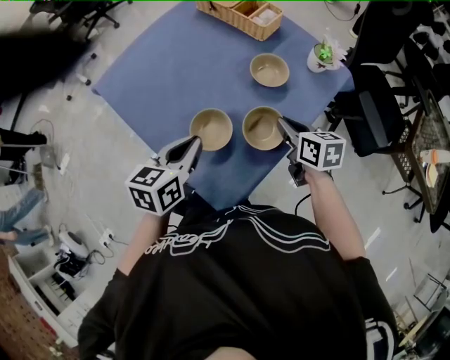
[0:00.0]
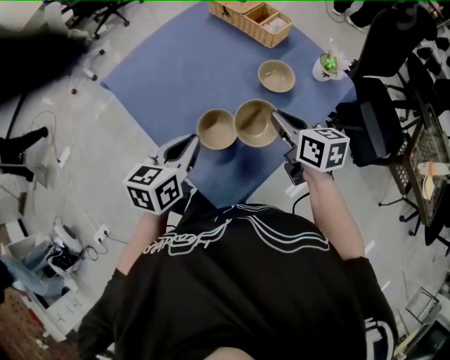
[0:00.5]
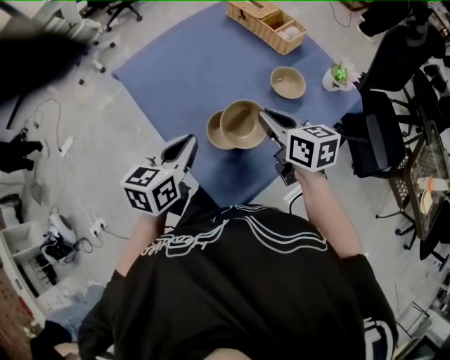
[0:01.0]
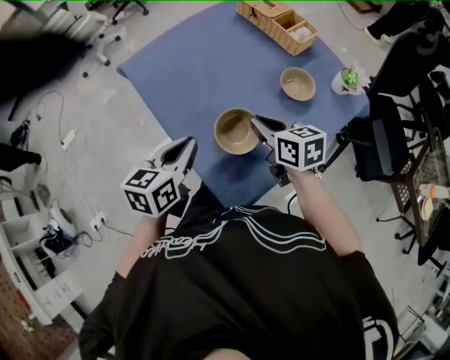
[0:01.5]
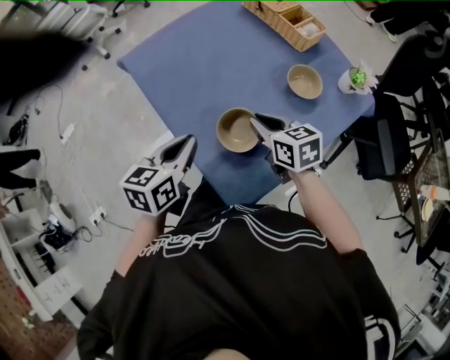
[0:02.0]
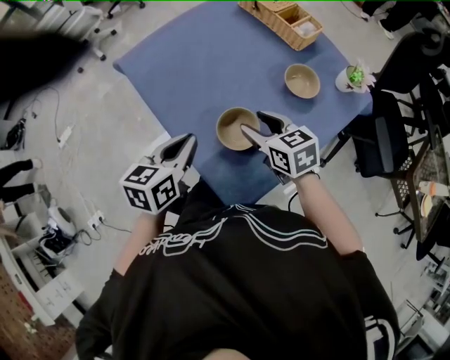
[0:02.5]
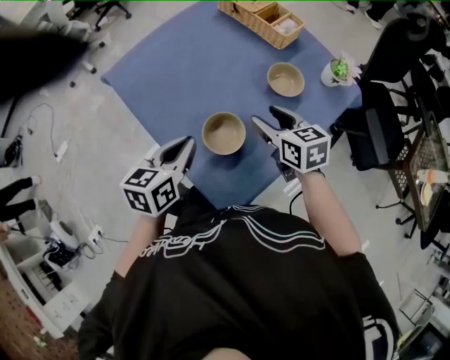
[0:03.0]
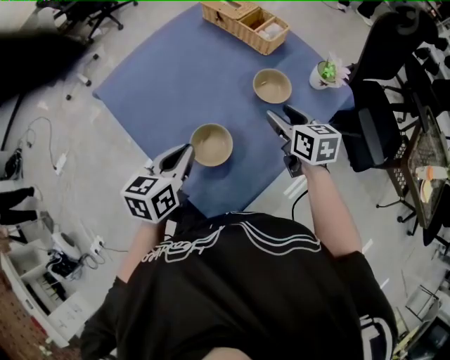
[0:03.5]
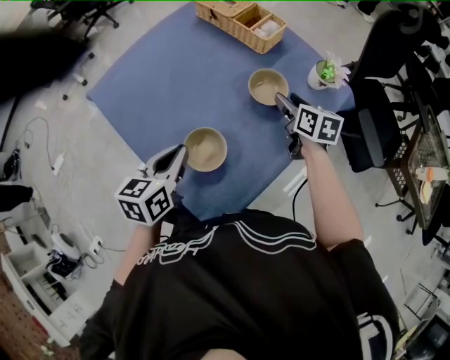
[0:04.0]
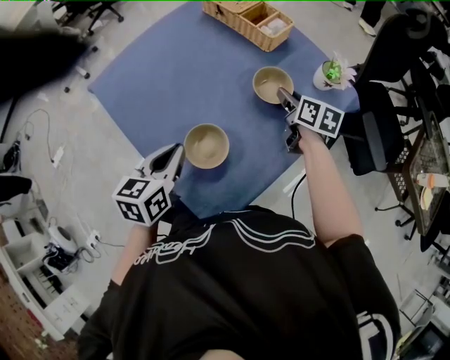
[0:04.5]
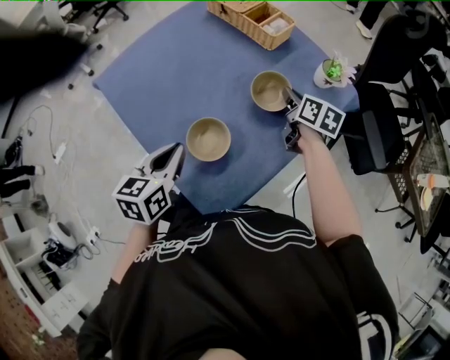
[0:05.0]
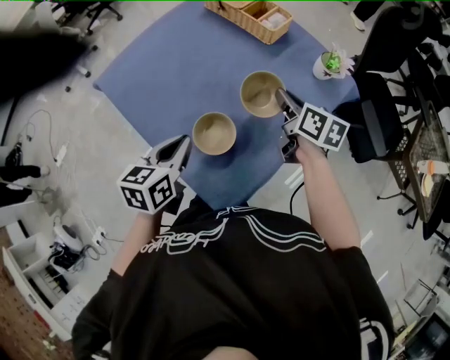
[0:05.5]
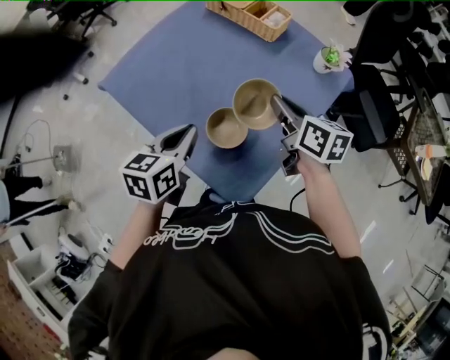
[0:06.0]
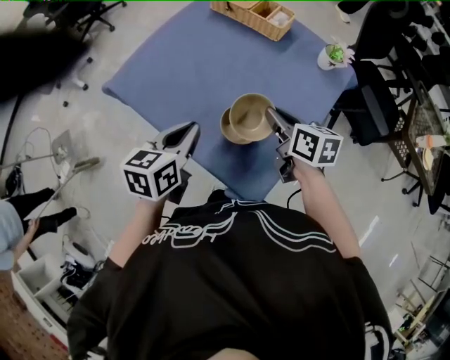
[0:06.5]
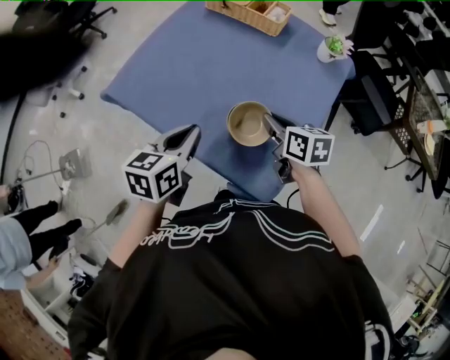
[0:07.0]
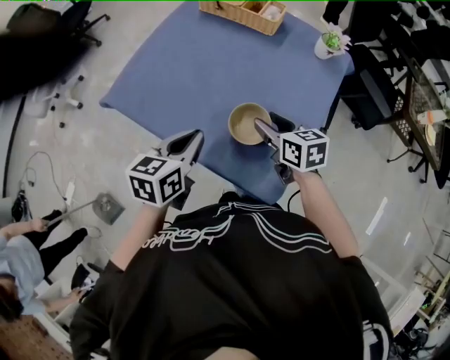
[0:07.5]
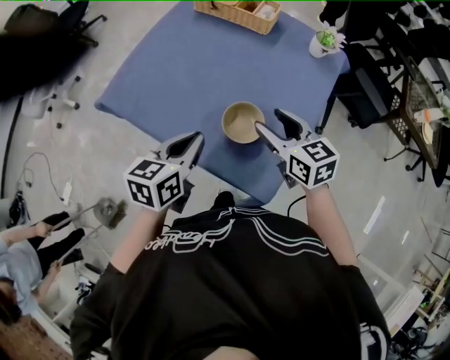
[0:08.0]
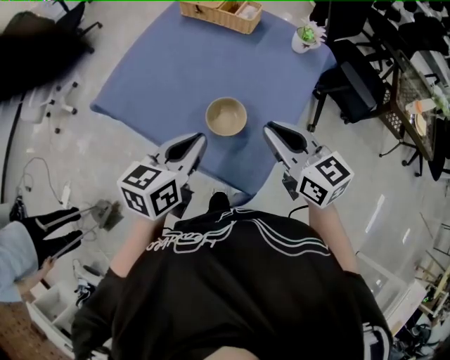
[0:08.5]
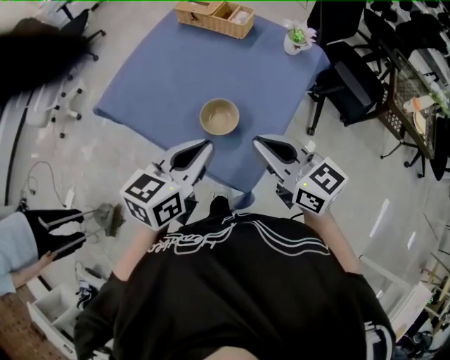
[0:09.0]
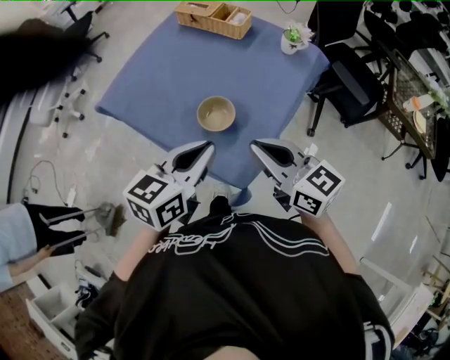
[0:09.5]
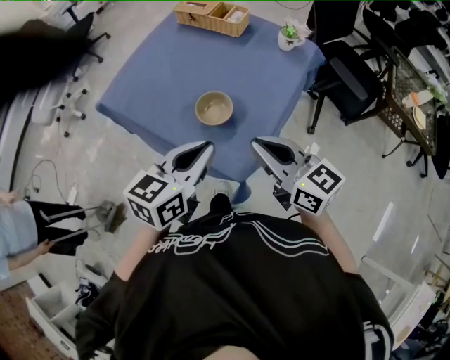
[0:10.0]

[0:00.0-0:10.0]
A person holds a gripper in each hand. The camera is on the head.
0:00.0 to 0:02.0: The left gripper goes about 10 cm to the left; the right gripper goes approximately 15 cm to the left, and changes its angle by approximately 20 degrees.
0:02.0 to 0:04.0: The left gripper travels to the right by approximately 10 cm. The right gripper shifts about 25 cm to the right and forward, turns by approximately 30 degrees, and opens its fingers.
0:04.0 to 0:06.0: The right gripper is displaced backward, to the left and upward by approximately 20 cm, and closes up; the left gripper moves about 5 cm.
0:06.0 to 0:08.0: The right gripper shifts roughly 10 cm backward and to the left, travels downward and back again, roughly 10 cm each way, turns by some 20 degrees, and opens up.
0:08.0 to 0:10.0: The left gripper travels backward, to the right and upward by approximately 20 cm. The right gripper travels backward and upward by about 20 cm, changes its angle by some 20 degrees, and closes.

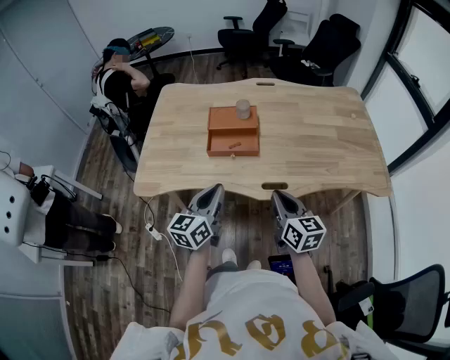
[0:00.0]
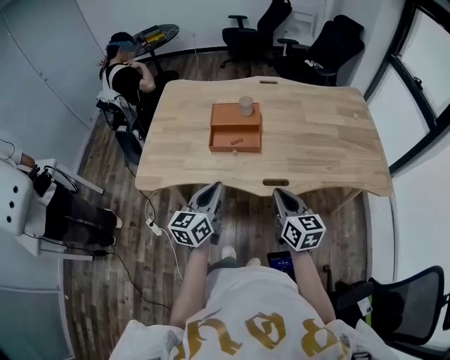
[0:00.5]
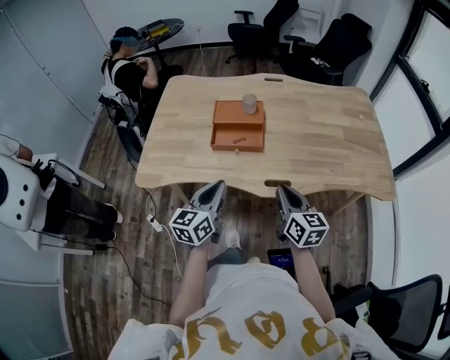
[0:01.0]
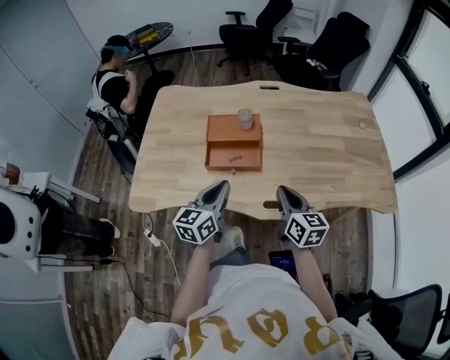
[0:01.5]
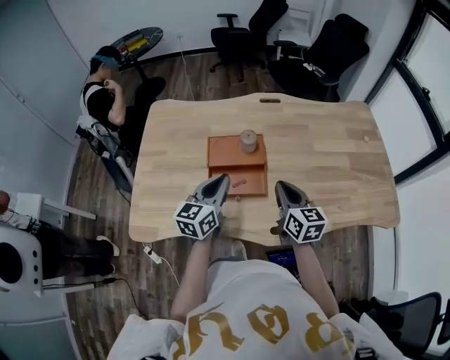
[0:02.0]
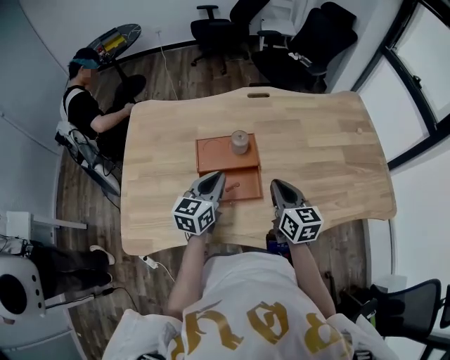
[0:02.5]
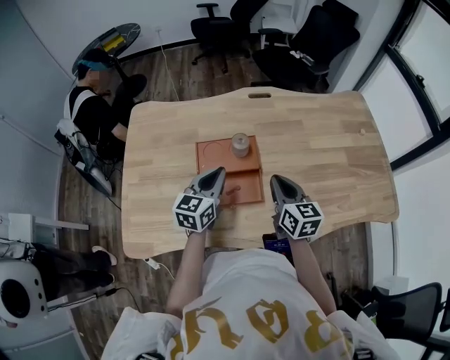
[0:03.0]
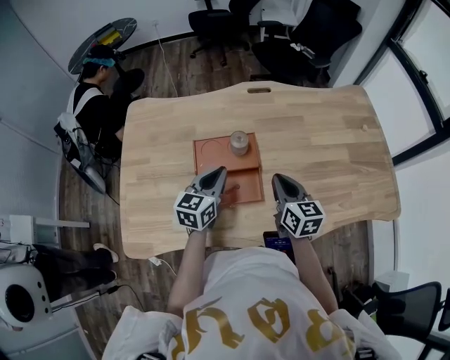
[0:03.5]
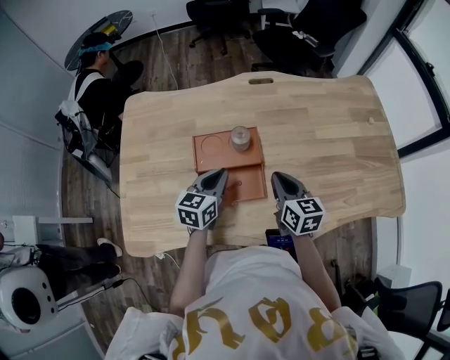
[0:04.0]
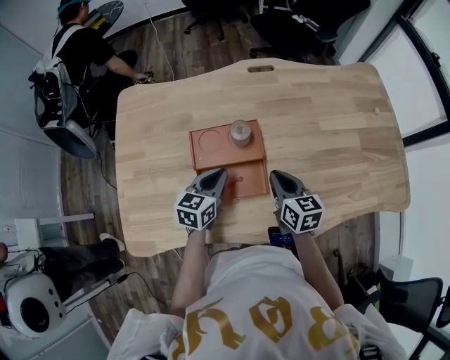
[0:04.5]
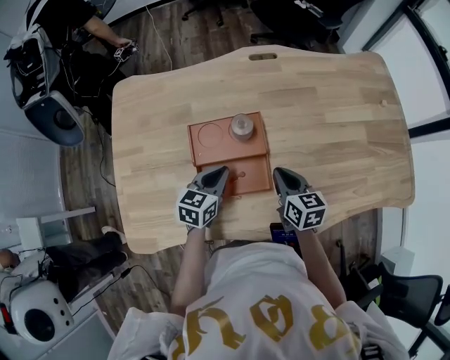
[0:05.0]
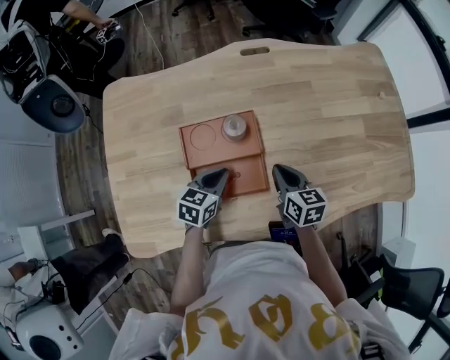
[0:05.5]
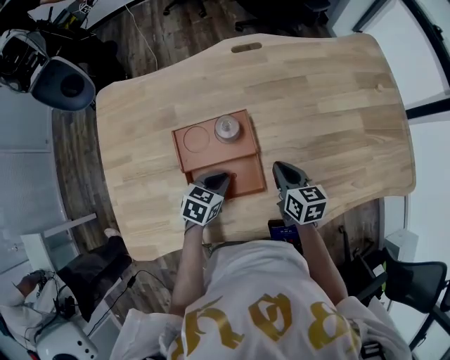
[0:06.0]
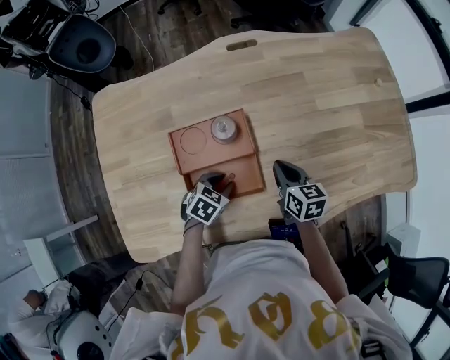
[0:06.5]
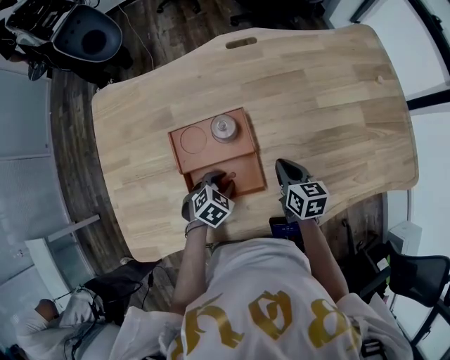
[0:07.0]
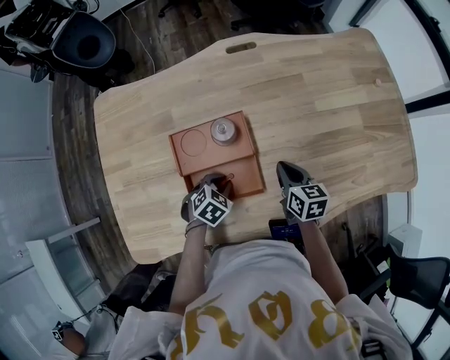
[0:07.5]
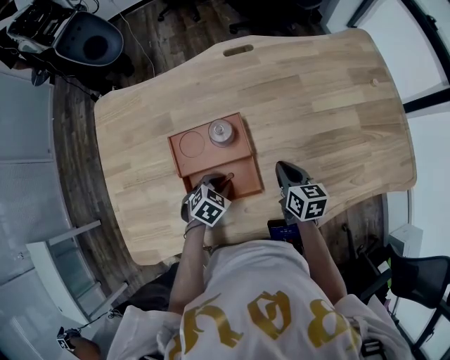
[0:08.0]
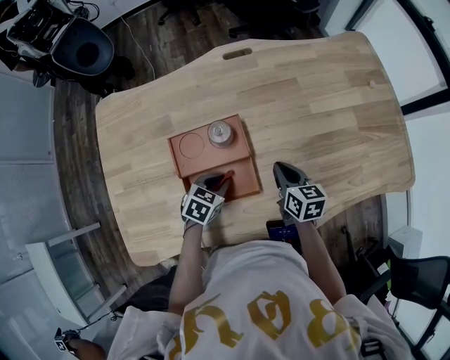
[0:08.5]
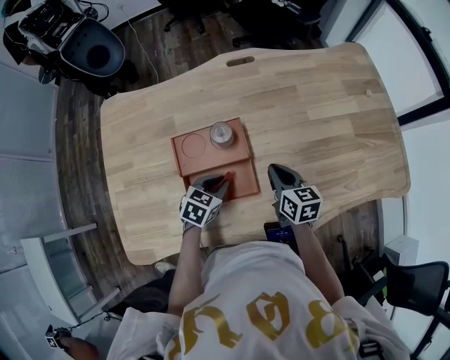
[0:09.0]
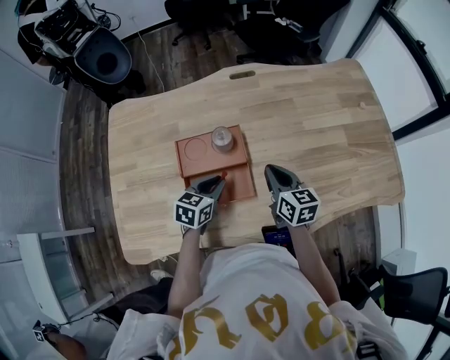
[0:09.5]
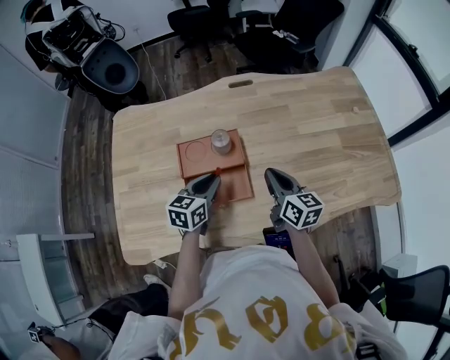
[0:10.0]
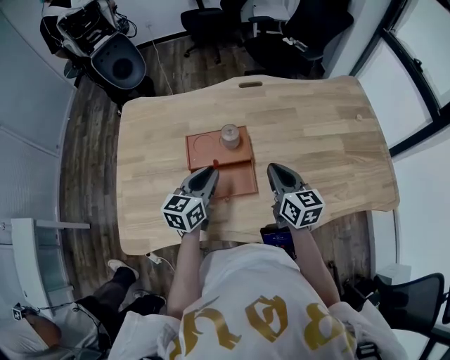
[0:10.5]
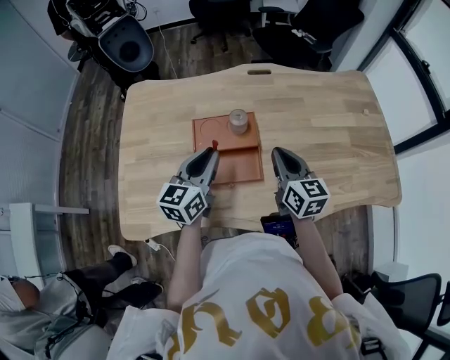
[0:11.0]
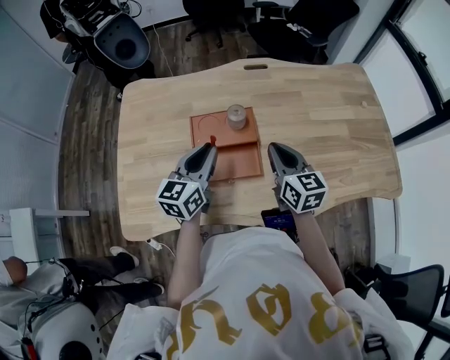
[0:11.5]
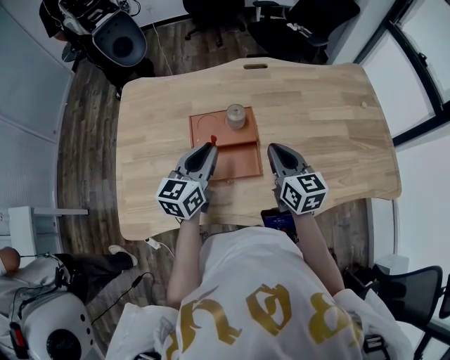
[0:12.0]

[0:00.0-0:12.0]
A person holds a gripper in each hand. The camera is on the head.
0:00.0 to 0:02.0: Both grippers move forward, roughly 25 cm.
0:02.0 to 0:04.0: The left gripper shifts approximately 15 cm downward and forward; the right gripper shifts some 10 cm forward and downward.
0:04.0 to 0:06.0: Both grippers move downward, roughly 10 cm. The left gripper turns by about 30 degrees.
0:06.0 to 0:08.0: The left gripper turns by approximately 20 degrees.
0:08.0 to 0:10.0: Both grippers move upward, some 15 cm. The left gripper tilts its fingers approximately 40 degrees upward; the right gripper swivels approximately 20 degrees.
0:10.0 to 0:12.0: The right gripper ends up roughly 5 cm from where it was; the left gripper shifts roughly 10 cm upward and to the left.

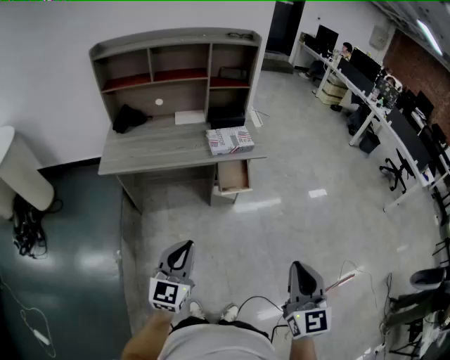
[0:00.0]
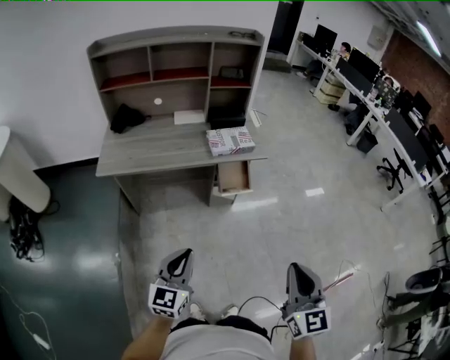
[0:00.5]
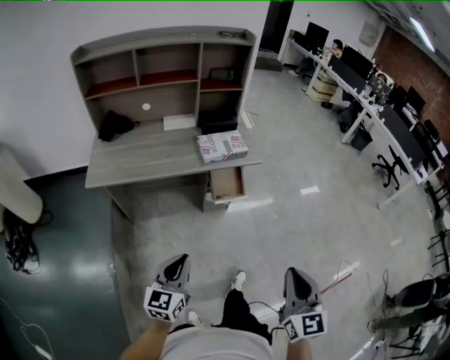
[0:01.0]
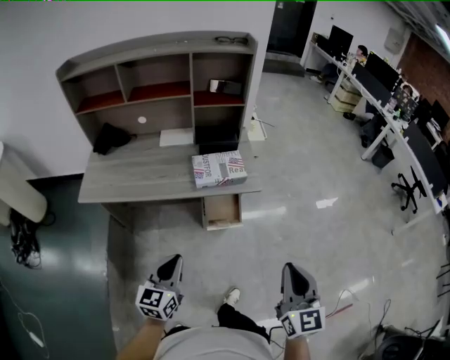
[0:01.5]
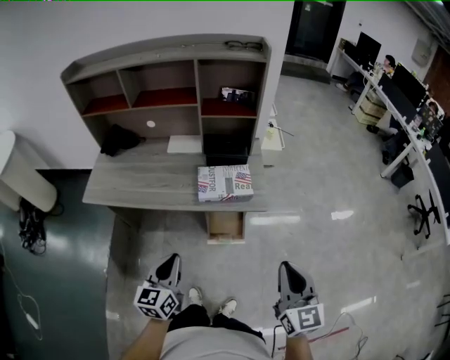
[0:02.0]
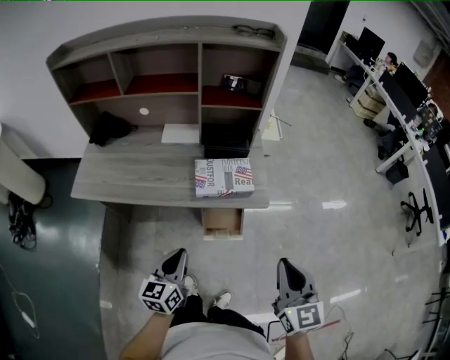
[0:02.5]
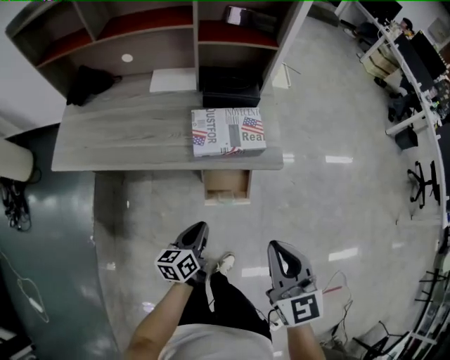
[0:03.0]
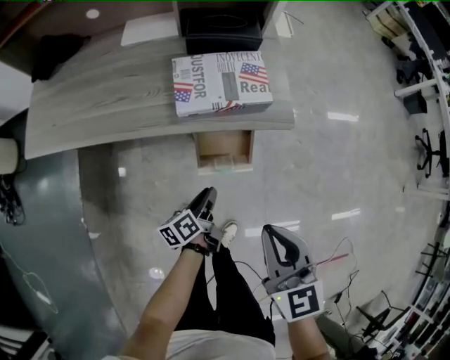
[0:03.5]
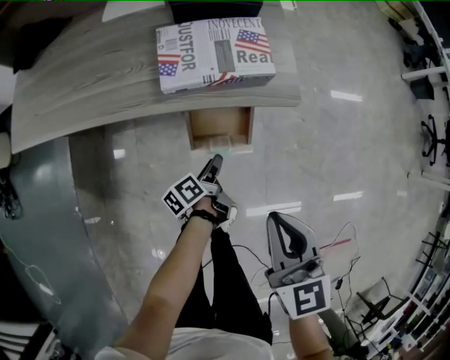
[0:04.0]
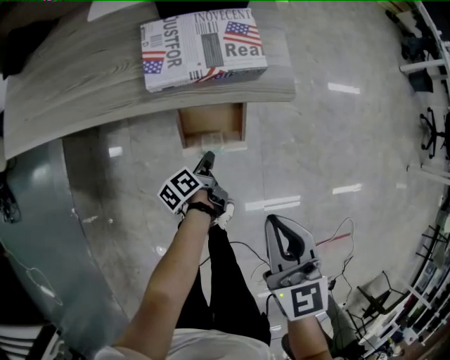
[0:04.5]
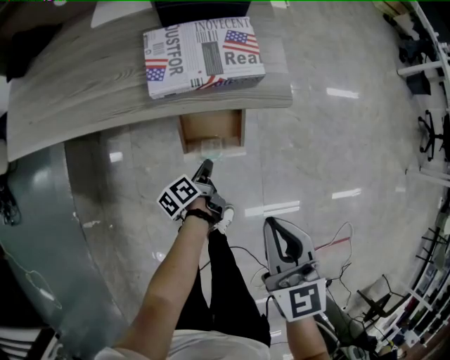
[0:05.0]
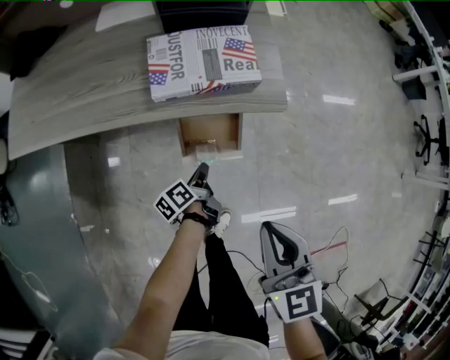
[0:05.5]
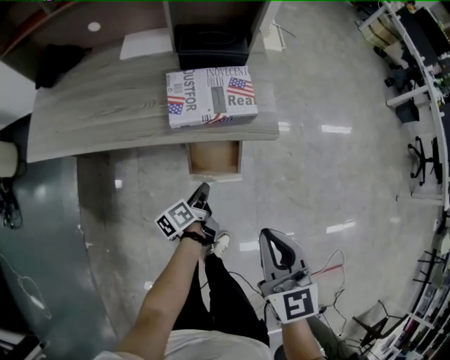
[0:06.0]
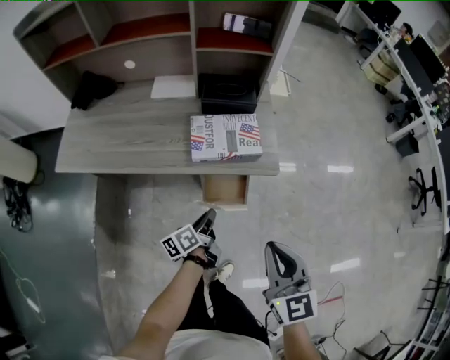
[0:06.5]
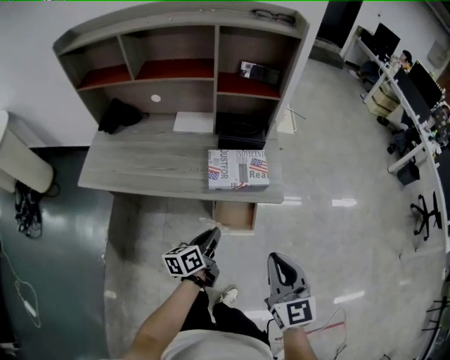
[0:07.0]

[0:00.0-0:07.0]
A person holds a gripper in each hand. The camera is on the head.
0:00.0 to 0:02.0: The two grippers go roughly 35 cm forward. The left gripper changes its angle by approximately 30 degrees.
0:02.0 to 0:03.5: The left gripper shifts roughly 35 cm downward, and rolls counterclockwise, seen from behind, by some 50 degrees; the right gripper shifts about 20 cm downward and to the left.
0:03.5 to 0:05.0: The left gripper travels downward by about 10 cm, while the right gripper shifts by some 5 cm.
0:05.0 to 0:07.0: The right gripper moves upward, about 20 cm; the left gripper is displaced upward by some 30 cm, and changes its angle by some 30 degrees.
